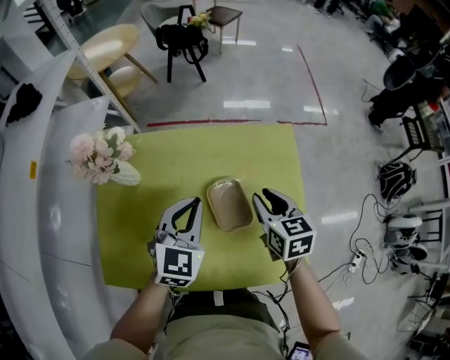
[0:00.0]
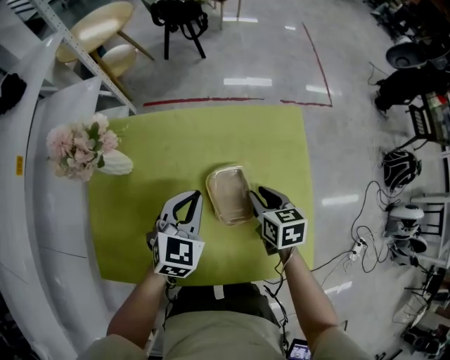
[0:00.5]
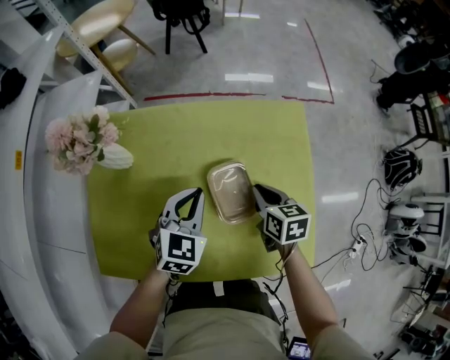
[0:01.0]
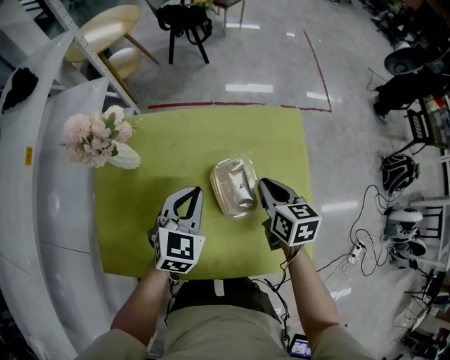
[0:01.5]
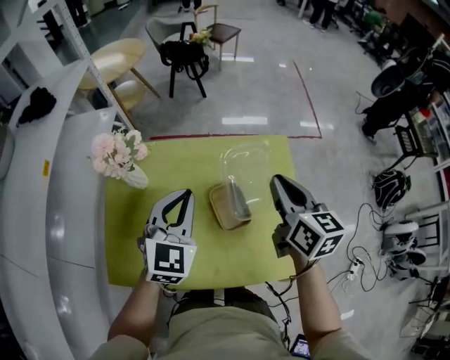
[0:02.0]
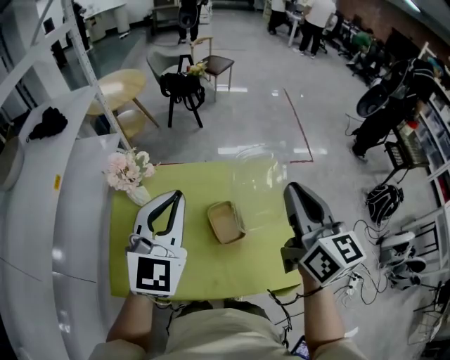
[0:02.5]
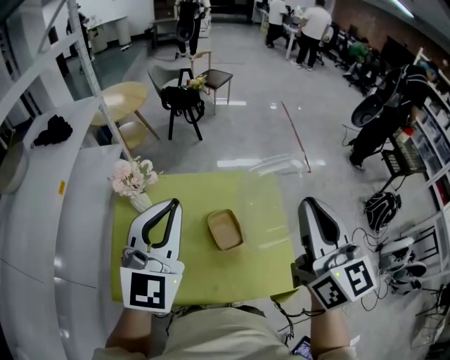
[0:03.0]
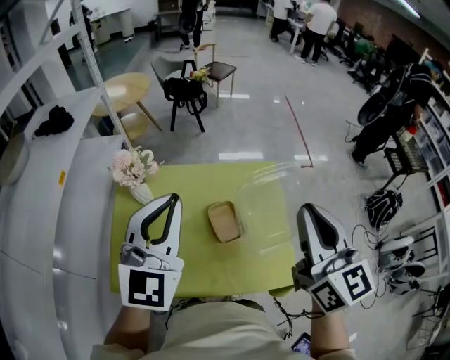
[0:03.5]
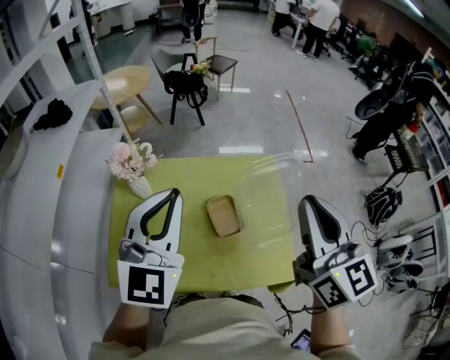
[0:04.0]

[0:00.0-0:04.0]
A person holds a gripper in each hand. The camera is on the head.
0:00.0 to 0:02.0: The left gripper shifts approximately 10 cm upward. Meanwhile the right gripper is displaced upward by roughly 15 cm, and closes.
0:02.0 to 0:04.0: Both grippers move upward and backward, roughly 20 cm. The left gripper swivels some 20 degrees. Meanwhile the right gripper swivels approximately 30 degrees.

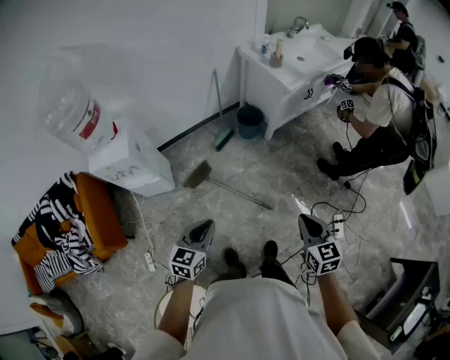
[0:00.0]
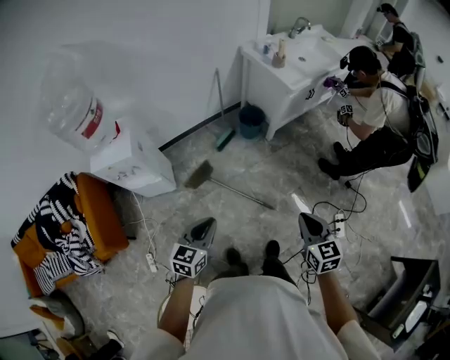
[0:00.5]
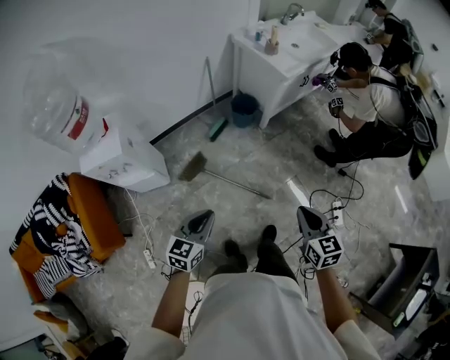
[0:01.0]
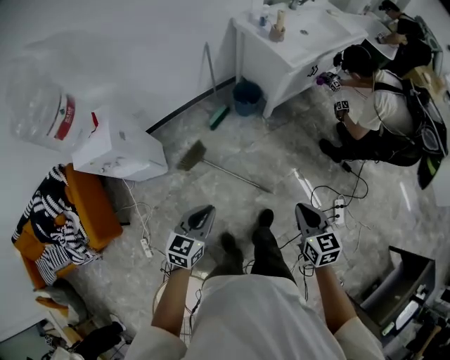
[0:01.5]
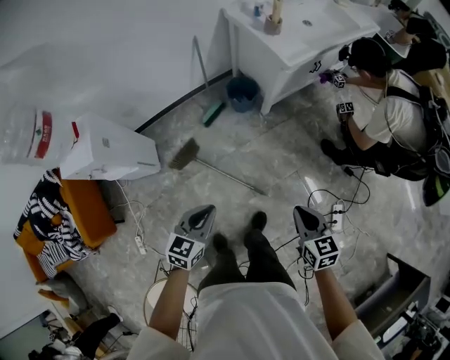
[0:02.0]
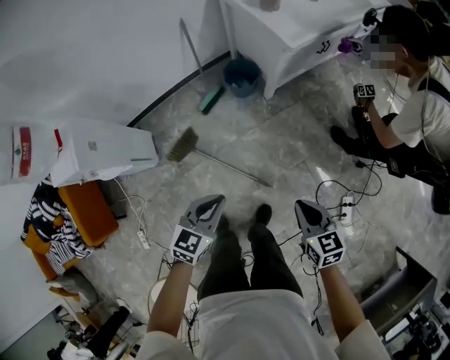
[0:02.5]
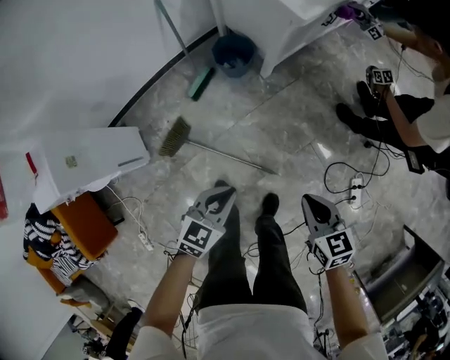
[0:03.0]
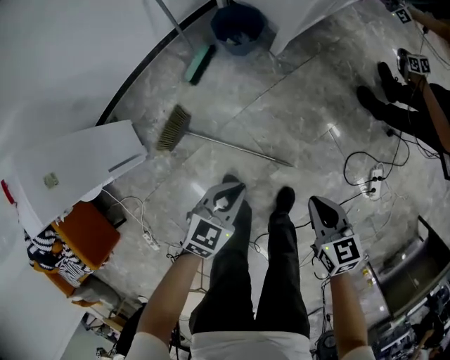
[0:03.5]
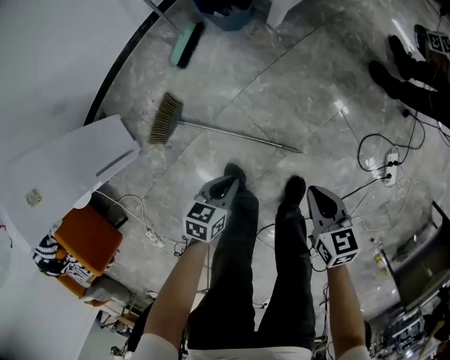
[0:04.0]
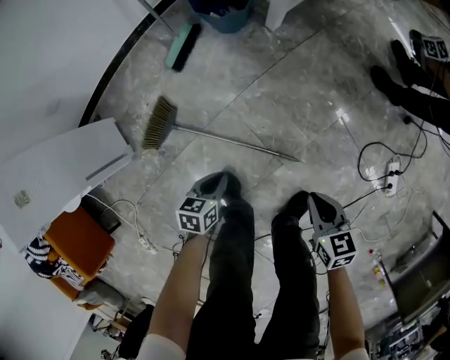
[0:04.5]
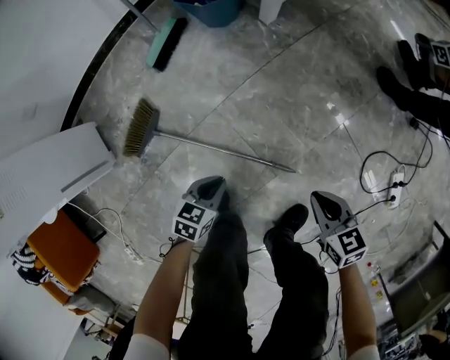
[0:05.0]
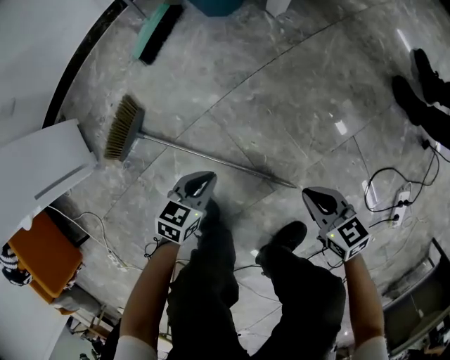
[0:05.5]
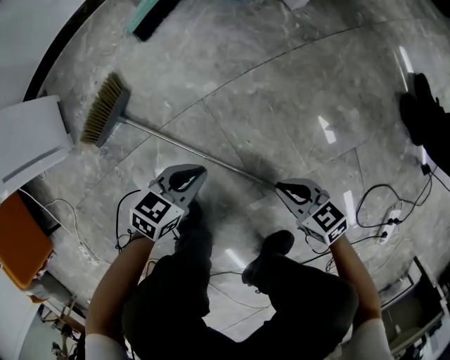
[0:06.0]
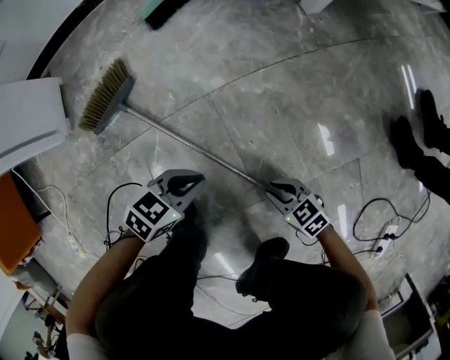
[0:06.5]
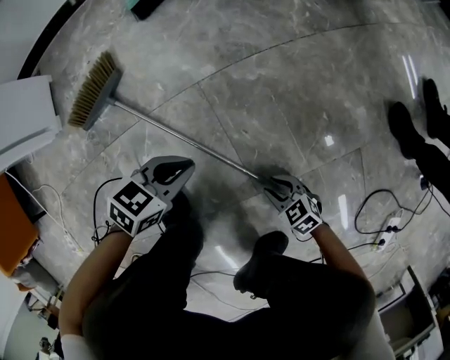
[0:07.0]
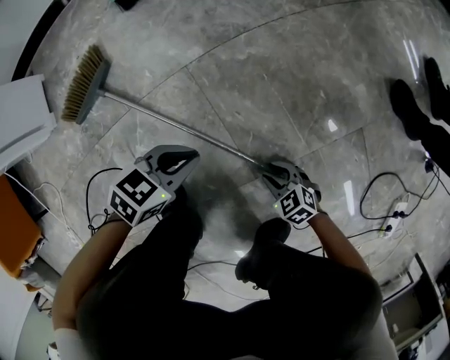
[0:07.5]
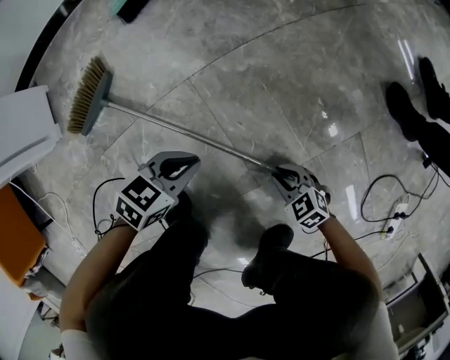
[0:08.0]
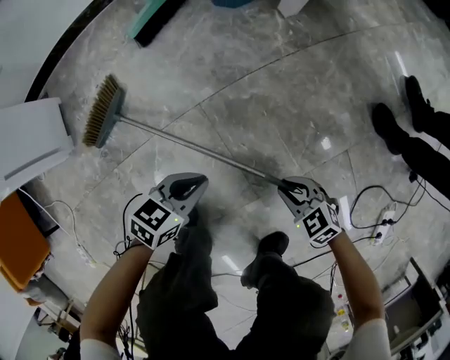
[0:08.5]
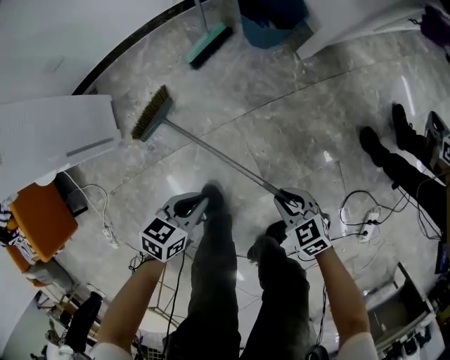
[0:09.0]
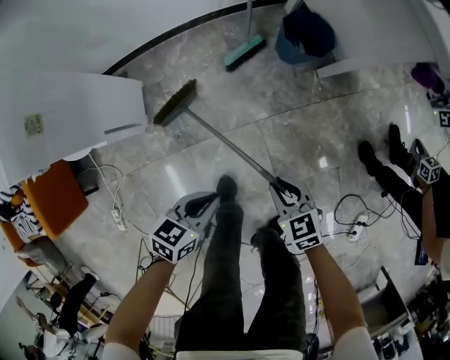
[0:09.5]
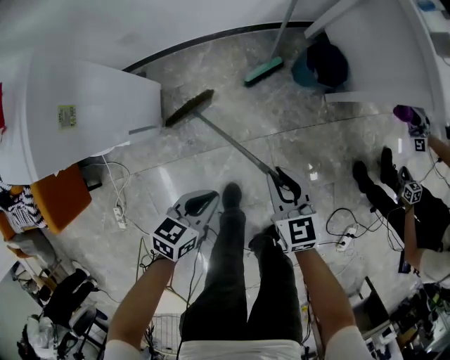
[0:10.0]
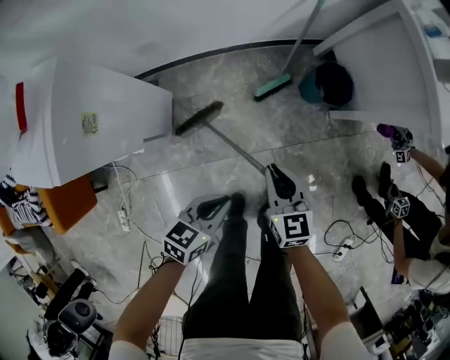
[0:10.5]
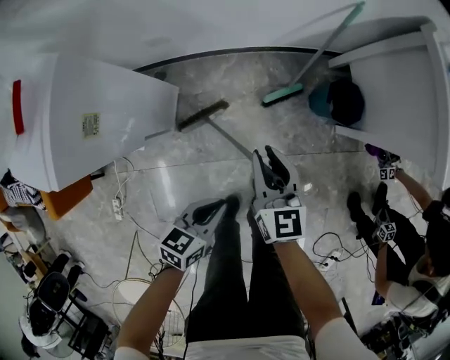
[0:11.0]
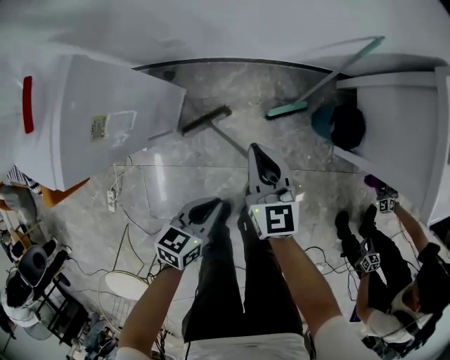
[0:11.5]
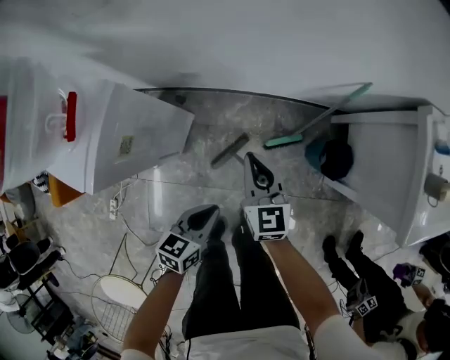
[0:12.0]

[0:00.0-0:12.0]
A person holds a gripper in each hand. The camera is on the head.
0:00.0 to 0:02.0: The right gripper travels forward, downward and to the right by about 25 cm. The left gripper moves forward, to the right and downward, roughly 25 cm.
0:02.0 to 0:04.0: The grippers both shift downward by approximately 50 cm. The left gripper turns by approximately 30 degrees.
0:04.0 to 0:06.0: Both grippers move downward, roughly 35 cm. The right gripper swivels approximately 40 degrees.
0:06.0 to 0:08.0: The right gripper shifts some 15 cm downward, and swivels some 20 degrees.
0:08.0 to 0:10.0: Both grippers move upward, roughly 50 cm. The right gripper turns by about 30 degrees. The left gripper changes its angle by approximately 40 degrees.
0:10.0 to 0:12.0: The left gripper moves forward, upward and to the left, roughly 20 cm, and swivels some 30 degrees. Meanwhile the right gripper goes approximately 35 cm forward, to the left and upward.

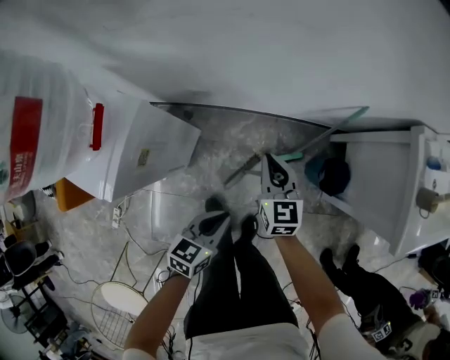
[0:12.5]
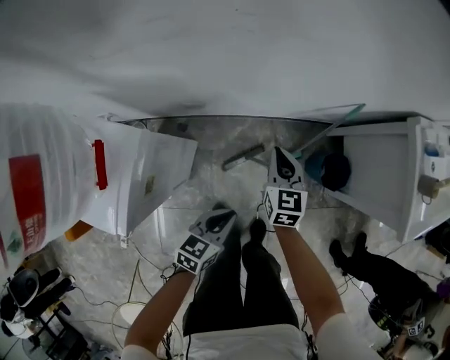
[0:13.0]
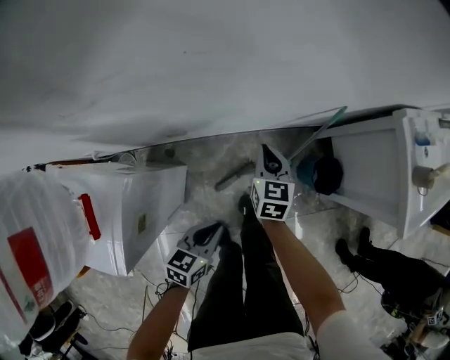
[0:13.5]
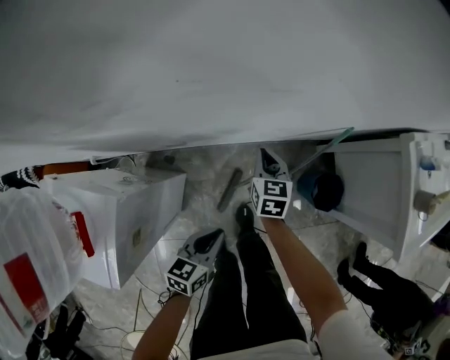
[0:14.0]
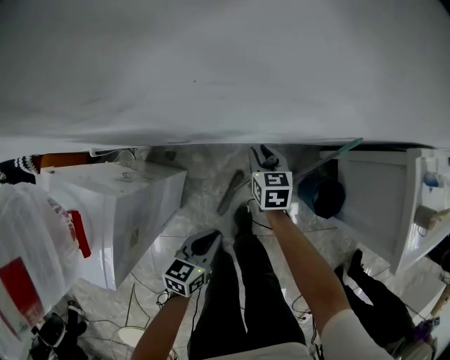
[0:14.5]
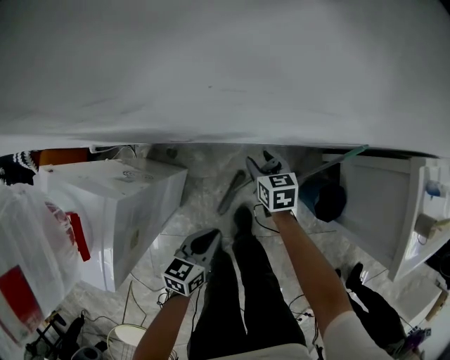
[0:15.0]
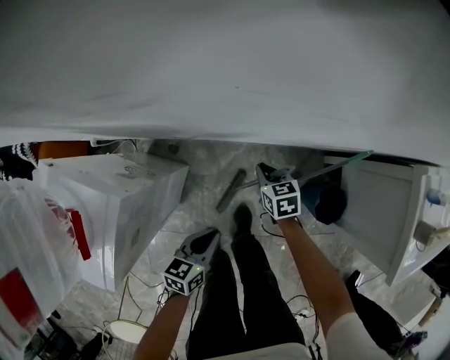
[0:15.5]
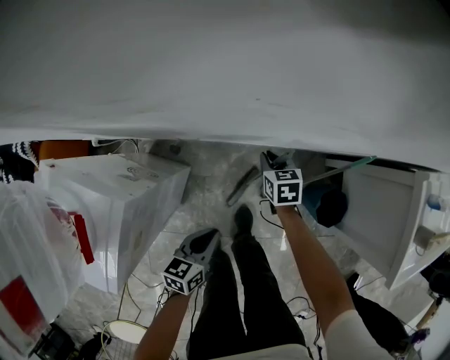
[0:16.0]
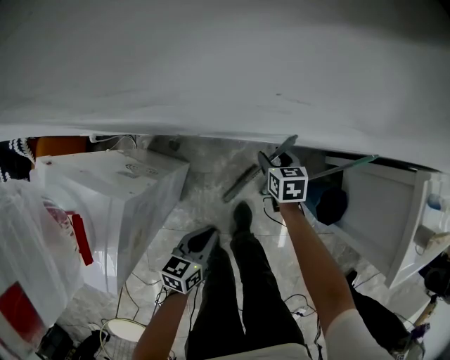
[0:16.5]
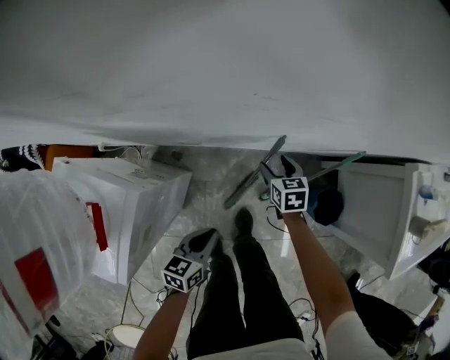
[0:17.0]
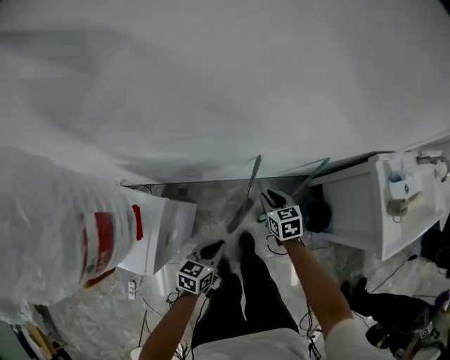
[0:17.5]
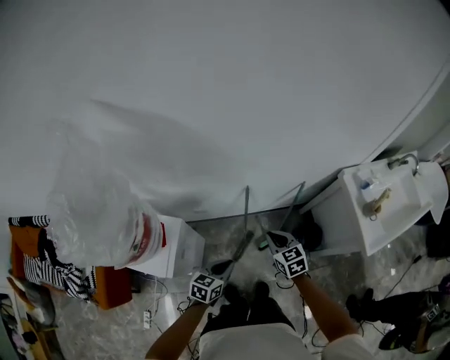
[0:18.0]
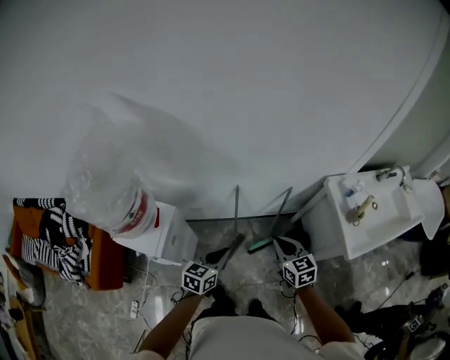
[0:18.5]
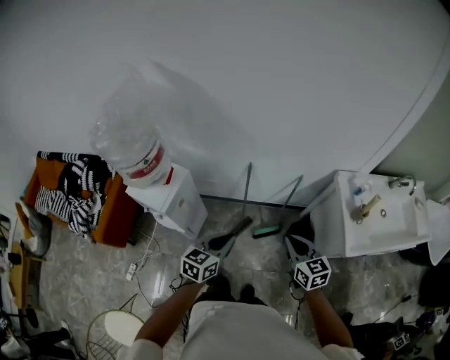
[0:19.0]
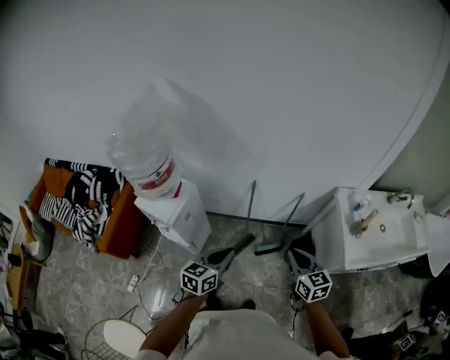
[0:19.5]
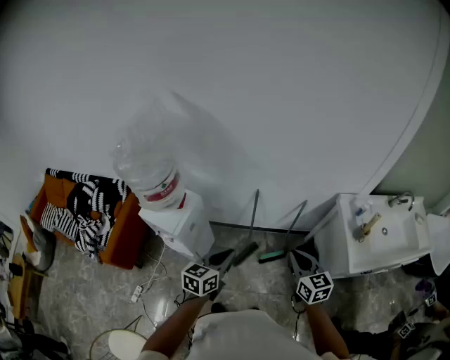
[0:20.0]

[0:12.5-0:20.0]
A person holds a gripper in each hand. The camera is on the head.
0:12.5 to 0:14.5: The right gripper travels forward and downward by about 25 cm, swivels approximately 20 degrees, and opens its fingers, while the left gripper shifts approximately 15 cm forward, to the left and downward.
0:14.5 to 0:16.5: The left gripper moves approximately 5 cm. Meanwhile the right gripper shifts approximately 5 cm downward, and opens.
0:16.5 to 0:18.0: The left gripper heads upward, covering roughly 30 cm, and turns by about 20 degrees. The right gripper travels upward and backward by about 50 cm, and closes.
0:18.0 to 0:20.0: The right gripper moves backward, upward and to the right, some 30 cm, and changes its angle by roughly 20 degrees; the left gripper is displaced upward and backward by approximately 25 cm, and changes its angle by approximately 20 degrees.

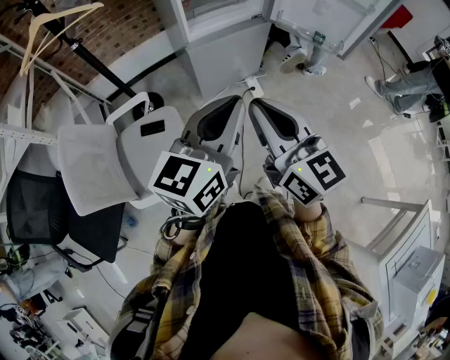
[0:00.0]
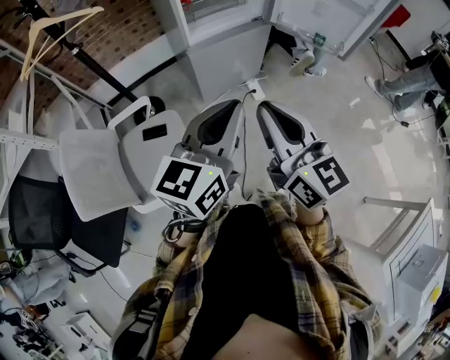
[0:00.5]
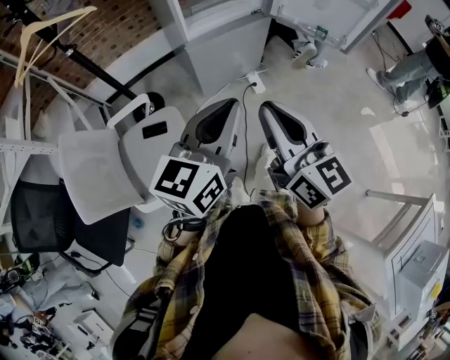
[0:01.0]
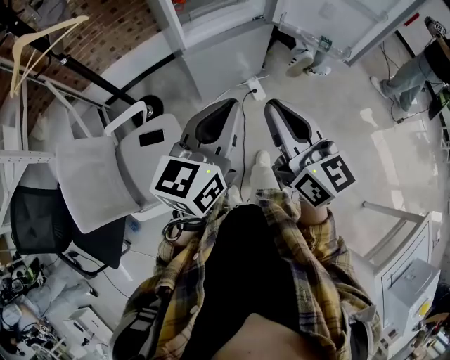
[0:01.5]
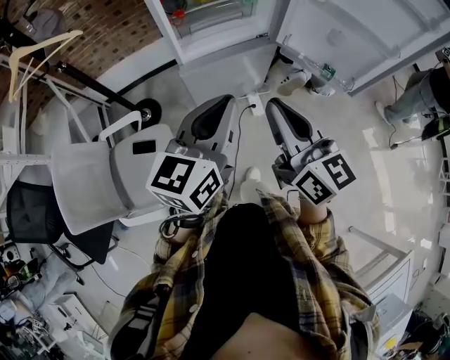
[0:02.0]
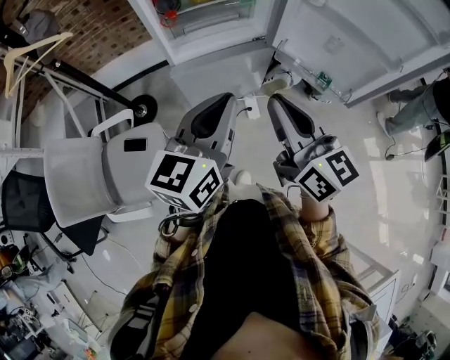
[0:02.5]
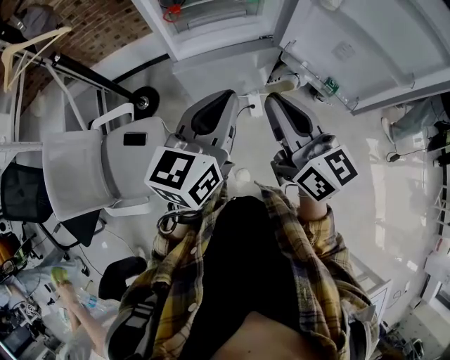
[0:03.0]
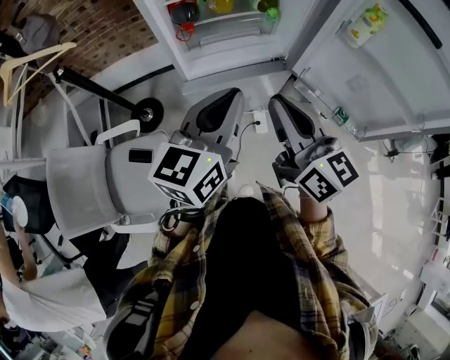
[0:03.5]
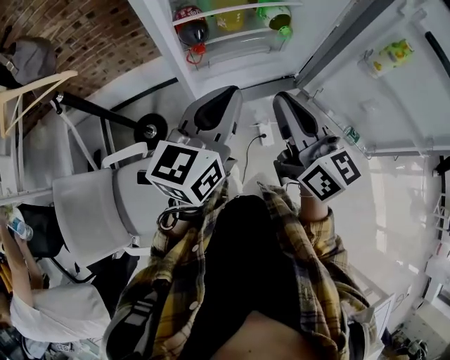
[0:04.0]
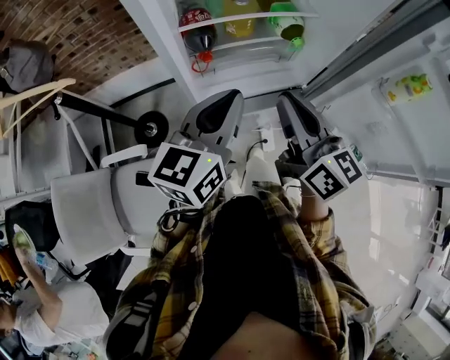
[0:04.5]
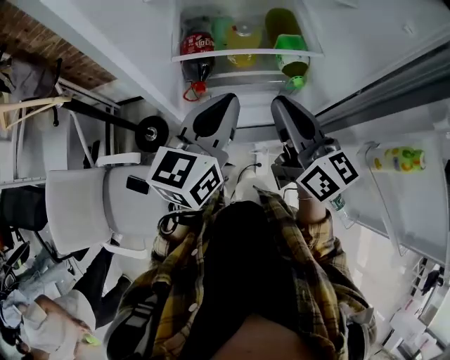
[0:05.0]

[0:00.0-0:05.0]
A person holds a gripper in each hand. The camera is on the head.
0:00.0 to 0:02.5: Both grippers move forward and to the right, some 30 cm.
0:02.5 to 0:05.0: The two grippers go approximately 40 cm forward.
